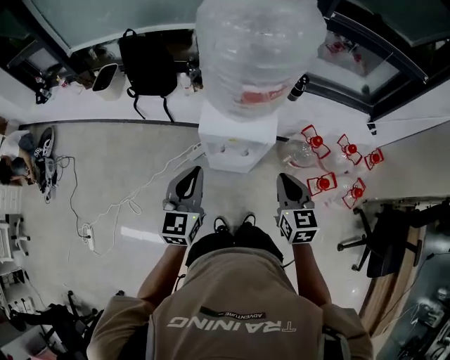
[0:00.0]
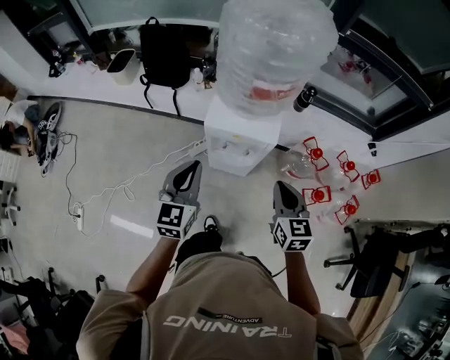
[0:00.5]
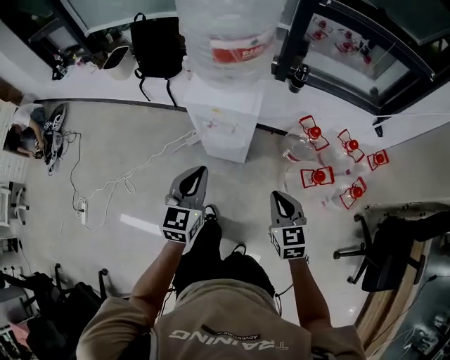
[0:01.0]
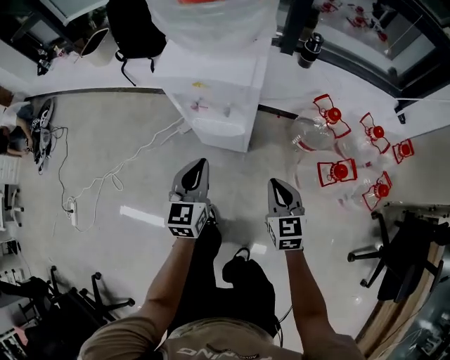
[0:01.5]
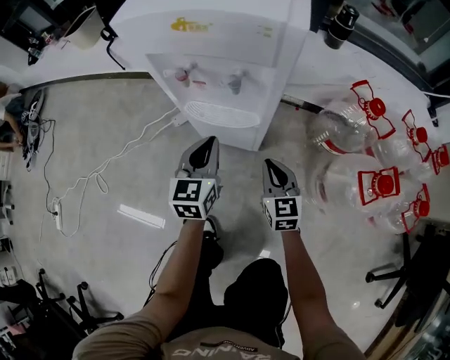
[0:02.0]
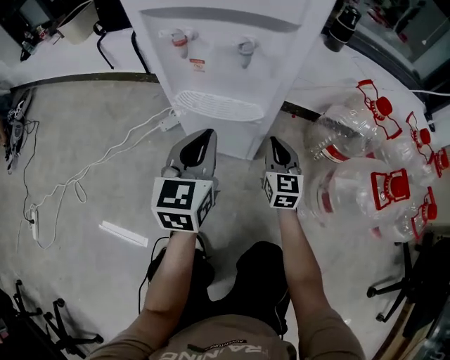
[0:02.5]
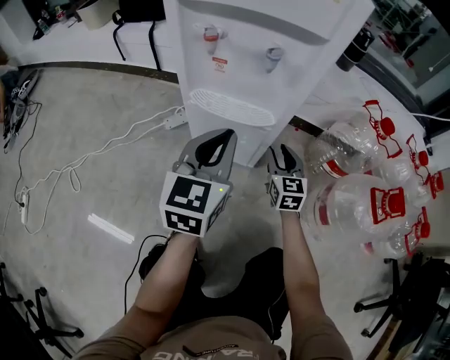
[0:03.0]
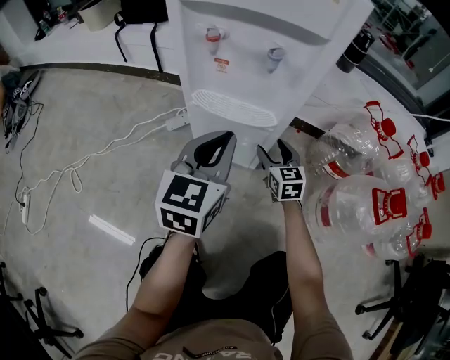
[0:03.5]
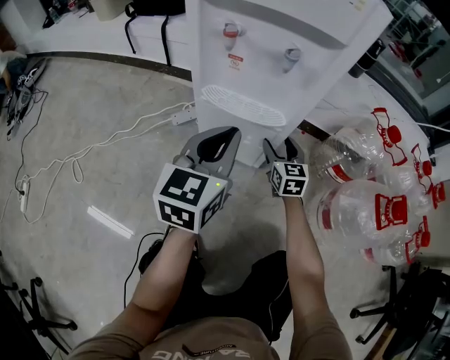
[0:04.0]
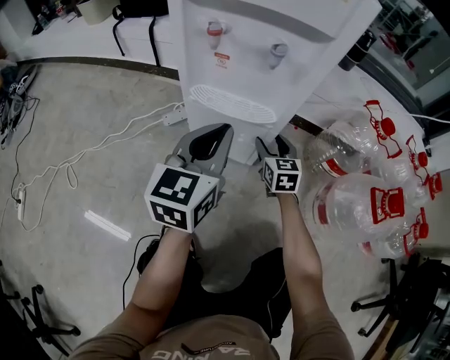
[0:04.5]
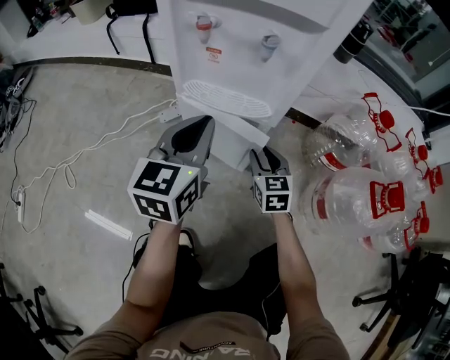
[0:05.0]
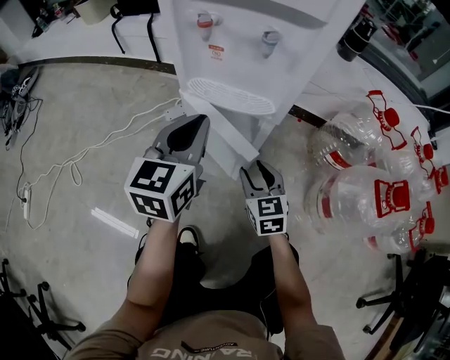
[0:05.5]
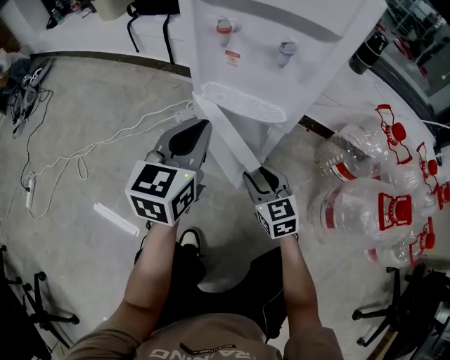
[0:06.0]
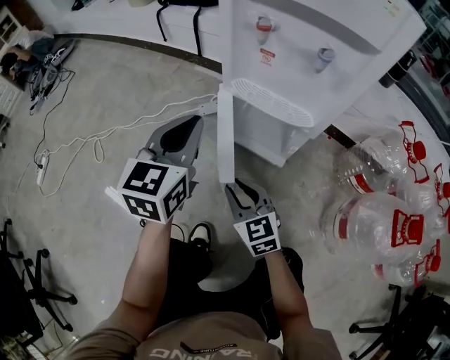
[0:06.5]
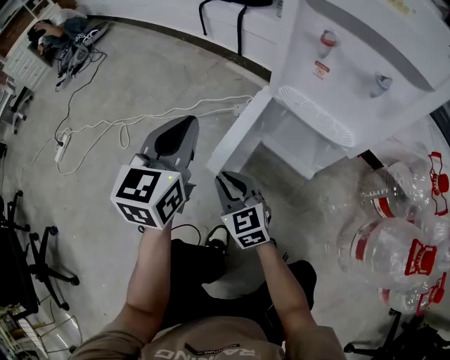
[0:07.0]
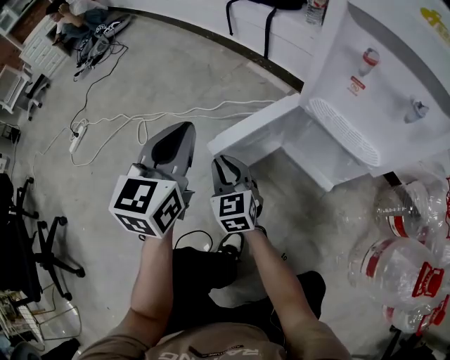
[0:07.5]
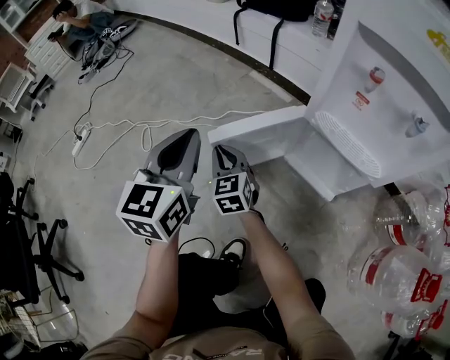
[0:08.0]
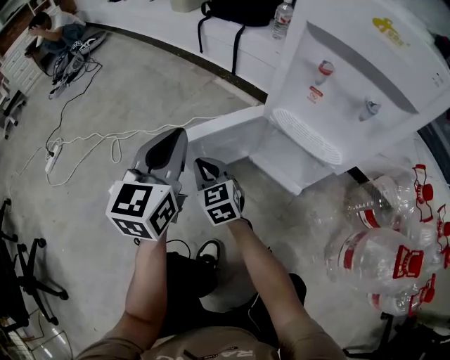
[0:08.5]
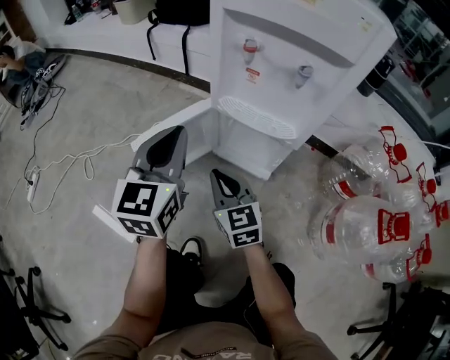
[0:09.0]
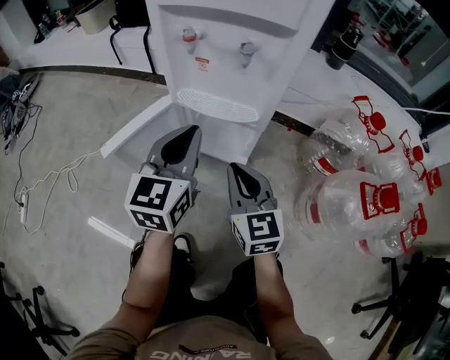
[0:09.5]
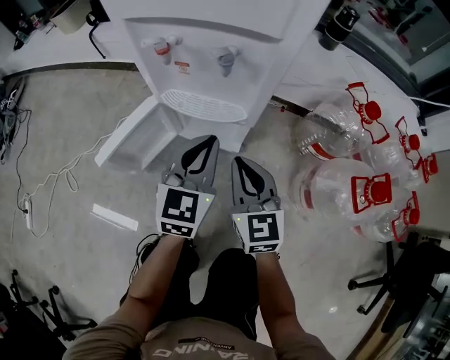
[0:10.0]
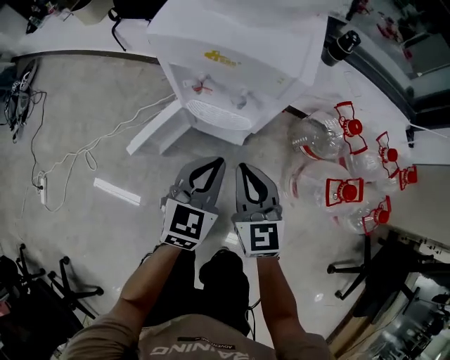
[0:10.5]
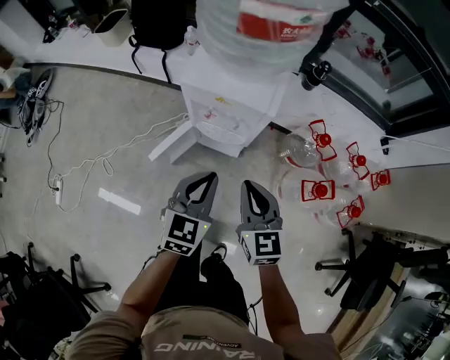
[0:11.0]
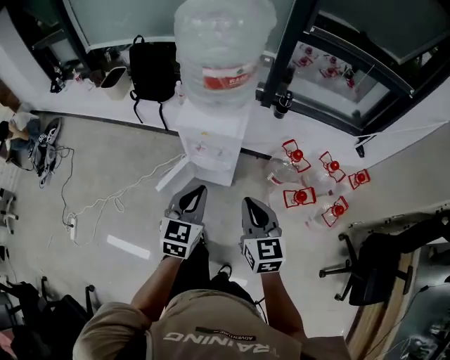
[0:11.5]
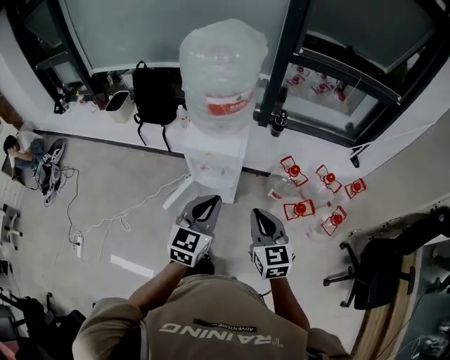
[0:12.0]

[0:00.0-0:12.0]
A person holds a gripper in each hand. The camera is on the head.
0:00.0 to 0:02.0: The two grippers go about 50 cm downward.
0:02.0 to 0:04.0: The right gripper is displaced forward and downward by approximately 15 cm, and opens its fingers.
0:04.0 to 0:06.0: The right gripper moves backward and to the left, some 15 cm.
0:06.0 to 0:08.0: The left gripper shifts some 25 cm to the left, and changes its angle by approximately 30 degrees, while the right gripper goes approximately 35 cm to the left and forward, and closes up.
0:08.0 to 0:10.0: The left gripper changes place by approximately 35 cm, and changes its angle by about 40 degrees, while the right gripper ends up approximately 40 cm from where it was, and rotates roughly 30 degrees.
0:10.0 to 0:12.0: The grippers both shift upward by roughly 50 cm.

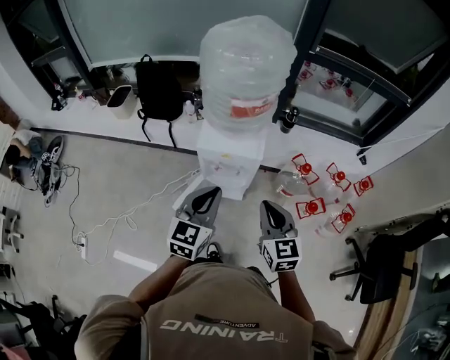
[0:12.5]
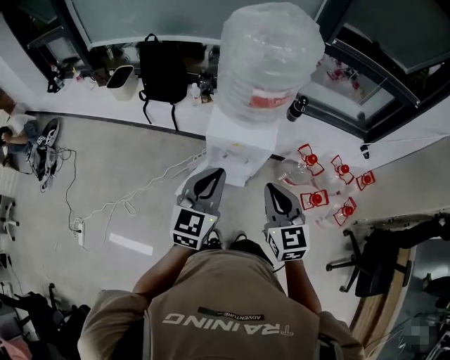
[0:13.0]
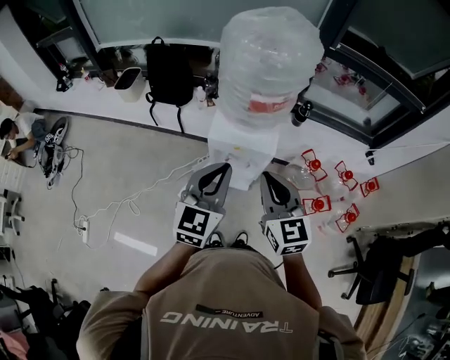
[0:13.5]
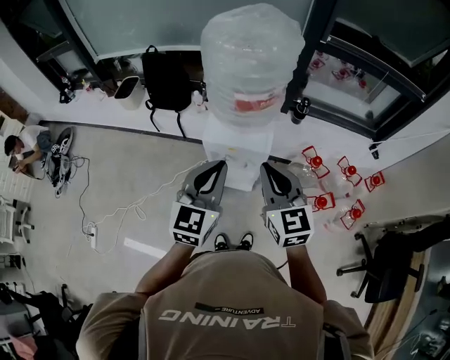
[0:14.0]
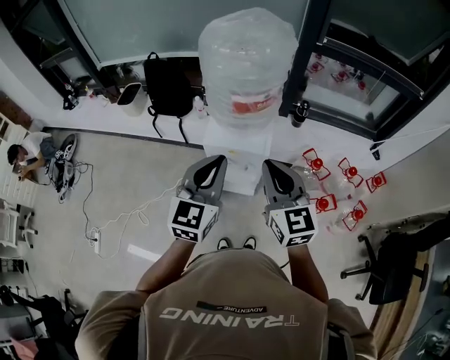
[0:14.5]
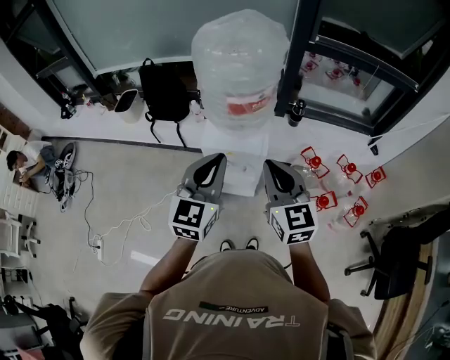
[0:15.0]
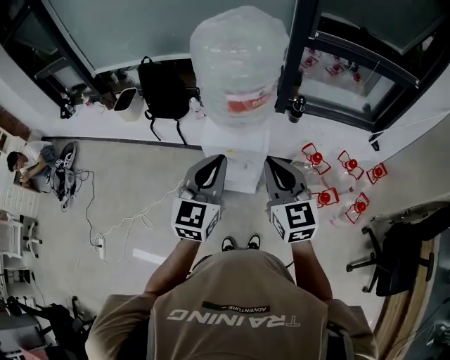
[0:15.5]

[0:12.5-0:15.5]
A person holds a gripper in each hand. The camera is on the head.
0:12.5 to 0:14.0: The right gripper shifts some 10 cm upward and forward, while the left gripper shifts about 5 cm upward.
0:14.0 to 0:15.5: The grippers stay close to where they were, moving slightly.

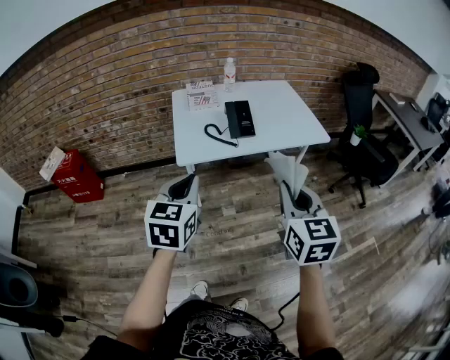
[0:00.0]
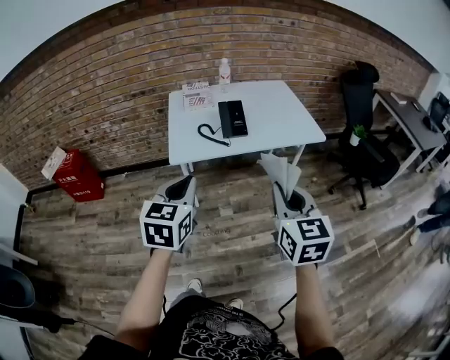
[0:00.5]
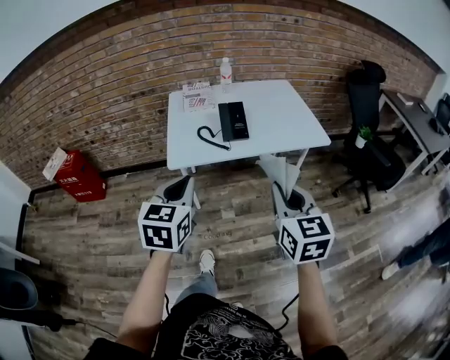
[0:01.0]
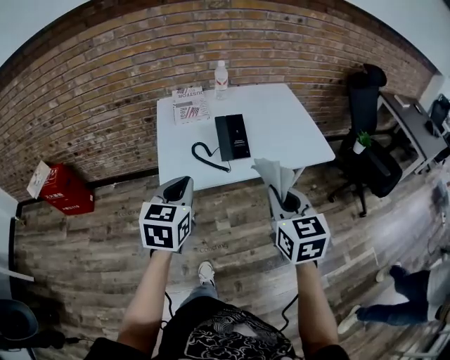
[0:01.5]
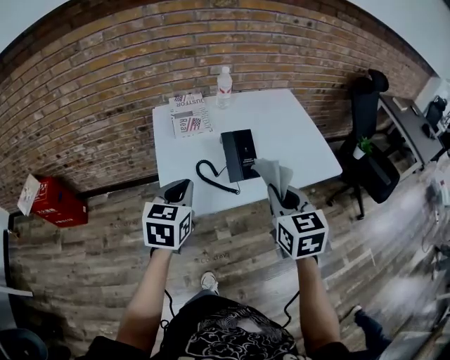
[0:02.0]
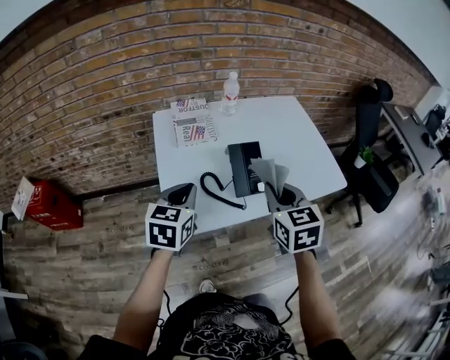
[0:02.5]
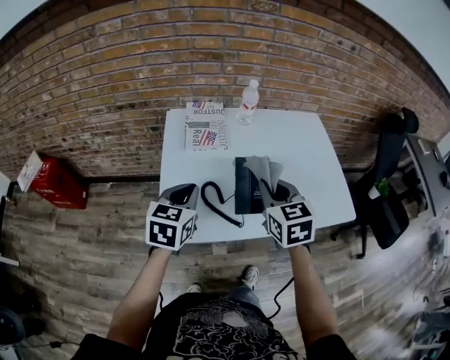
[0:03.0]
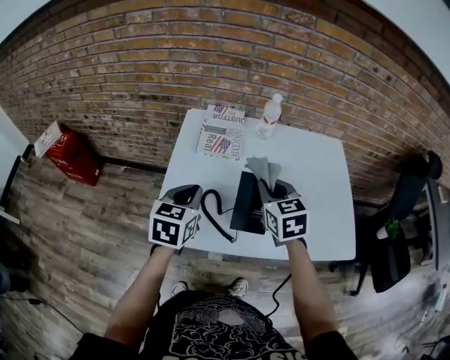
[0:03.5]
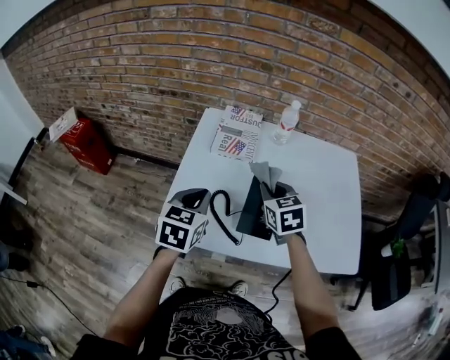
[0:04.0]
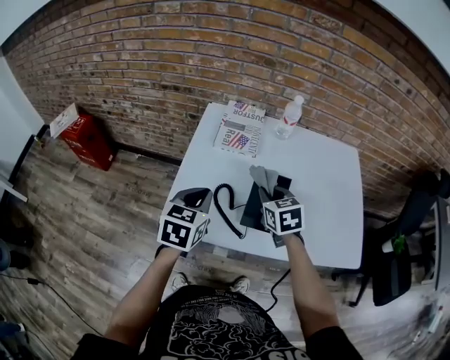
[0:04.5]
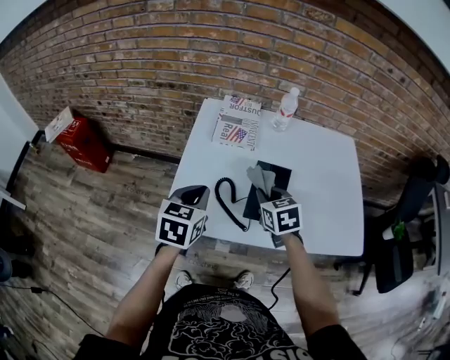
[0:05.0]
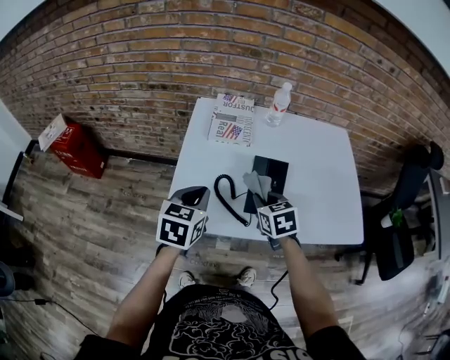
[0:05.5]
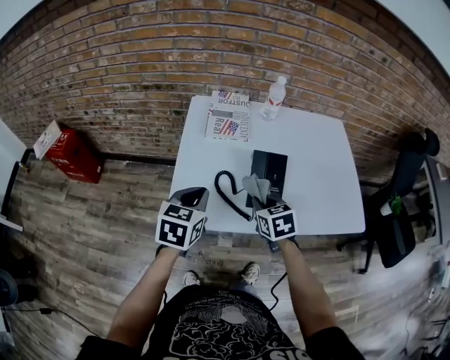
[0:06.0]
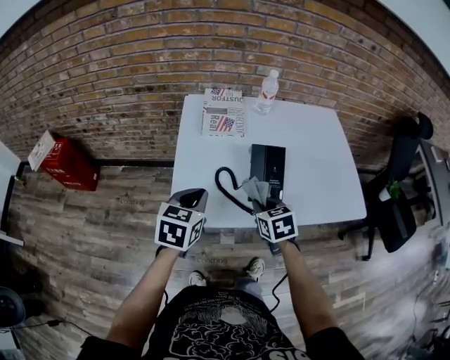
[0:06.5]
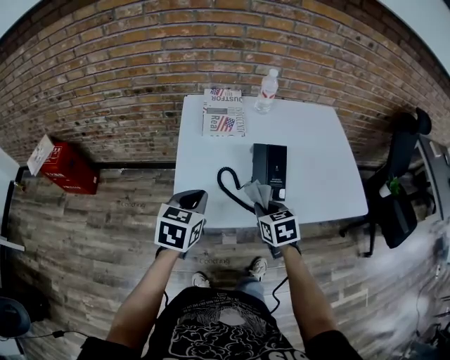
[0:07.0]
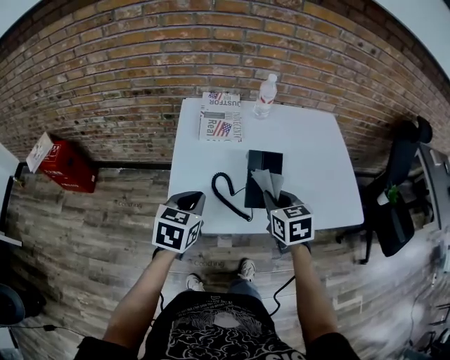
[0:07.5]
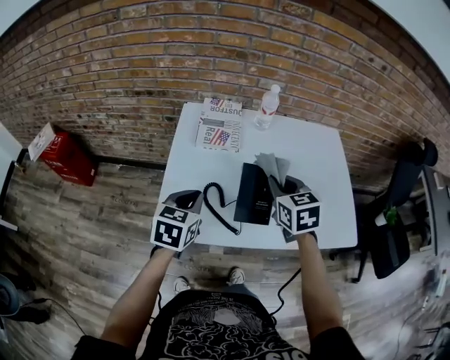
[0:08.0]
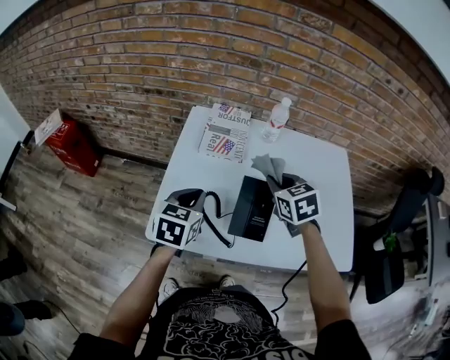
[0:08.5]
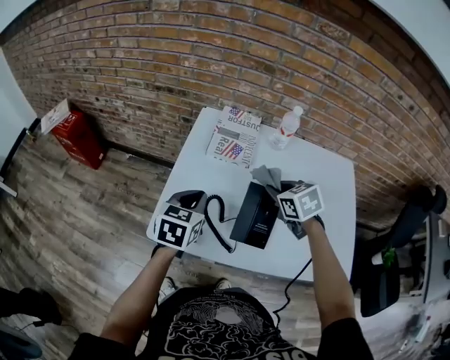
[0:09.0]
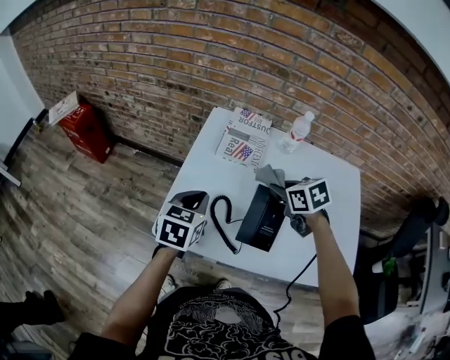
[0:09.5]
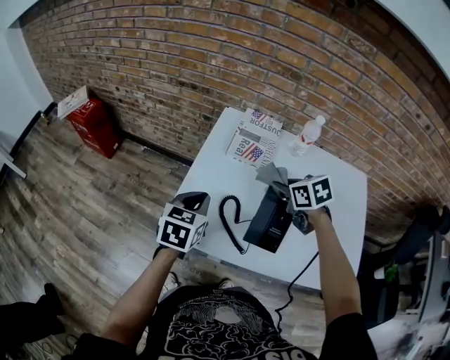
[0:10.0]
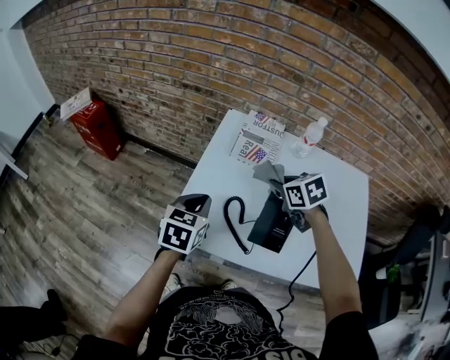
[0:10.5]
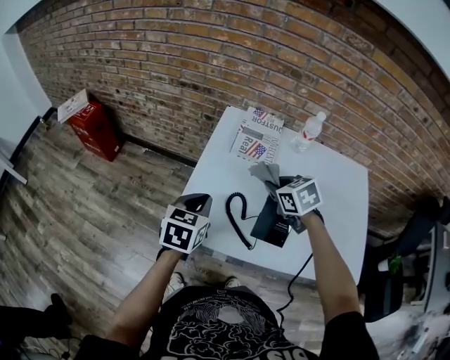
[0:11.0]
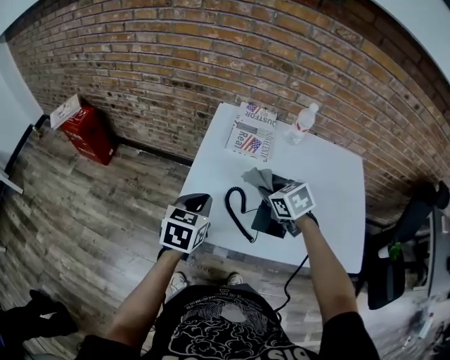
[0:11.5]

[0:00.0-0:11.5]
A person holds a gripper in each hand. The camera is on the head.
0:00.0 to 0:02.0: The two grippers go about 30 cm forward.
0:02.0 to 0:04.0: The left gripper goes approximately 15 cm forward and downward, and swivels some 20 degrees. The right gripper moves forward and downward, roughly 30 cm, and changes its angle by about 30 degrees.
0:04.0 to 0:06.0: The left gripper heads backward, covering some 5 cm; the right gripper shifts roughly 15 cm backward and downward.
0:06.0 to 0:07.5: The right gripper shifts approximately 5 cm upward.
0:07.5 to 0:09.5: The left gripper shifts by some 5 cm; the right gripper changes place by some 15 cm, and changes its angle by some 30 degrees.
0:09.5 to 0:11.5: The left gripper changes place by some 5 cm. The right gripper travels to the left by roughly 10 cm.
